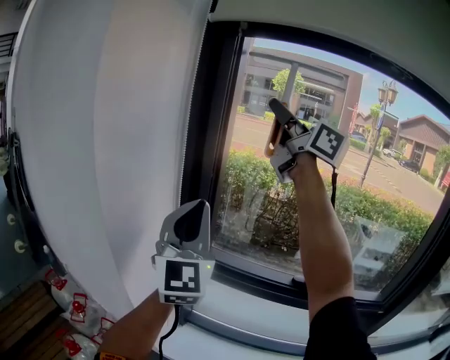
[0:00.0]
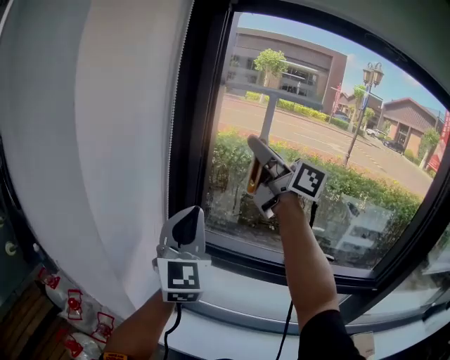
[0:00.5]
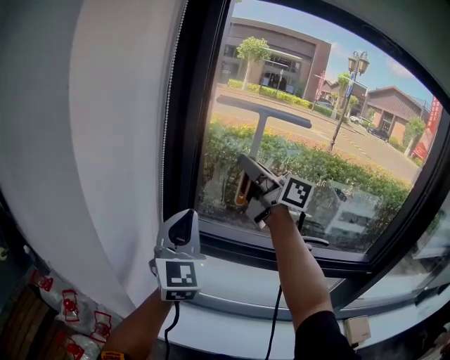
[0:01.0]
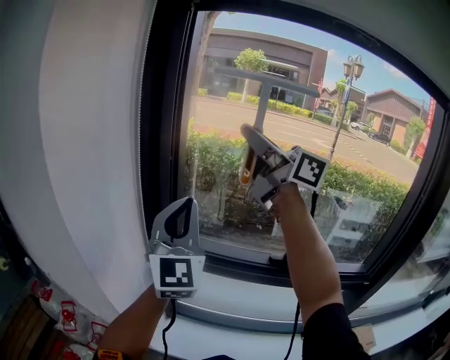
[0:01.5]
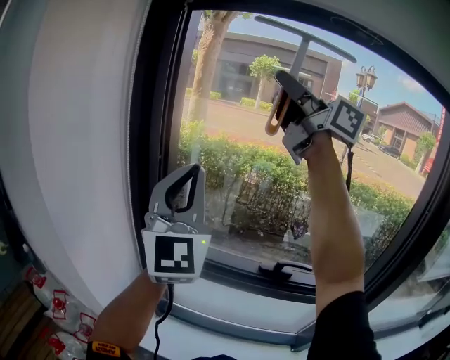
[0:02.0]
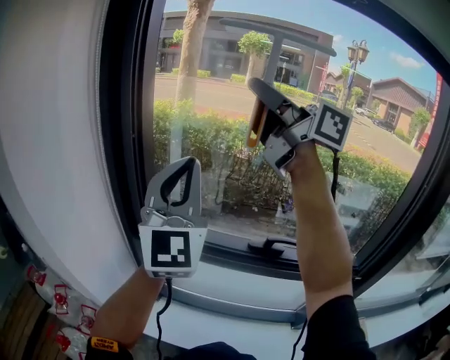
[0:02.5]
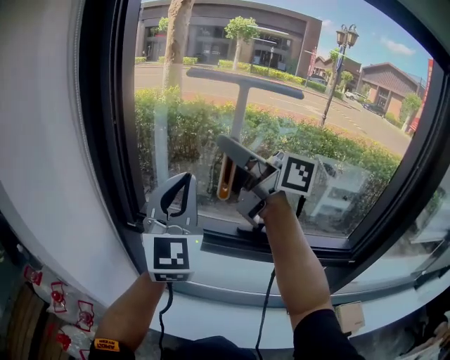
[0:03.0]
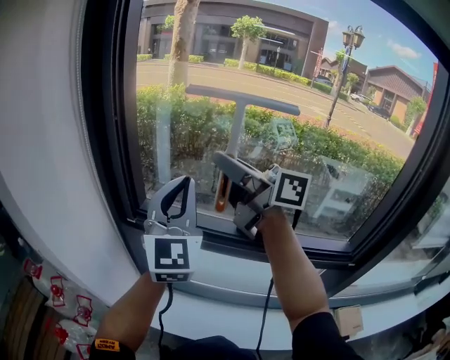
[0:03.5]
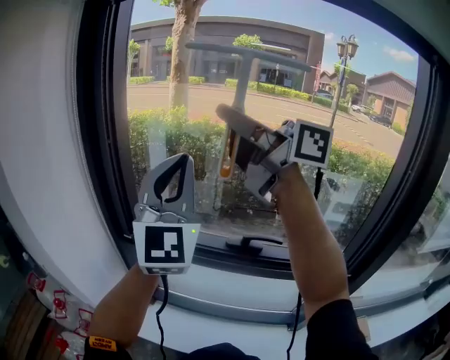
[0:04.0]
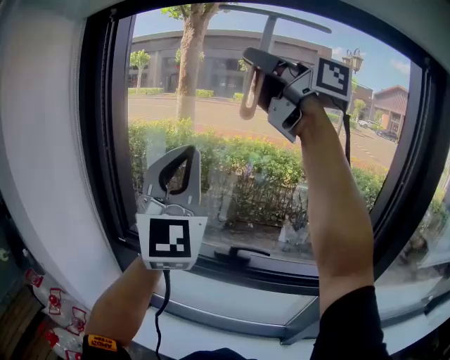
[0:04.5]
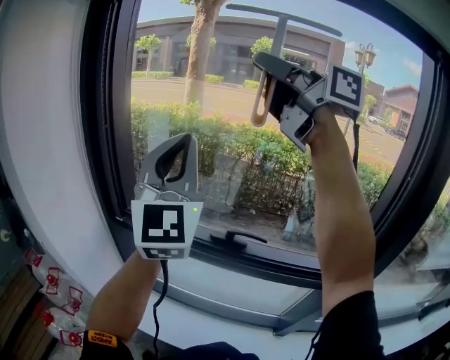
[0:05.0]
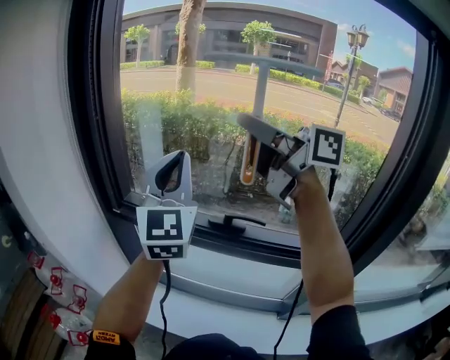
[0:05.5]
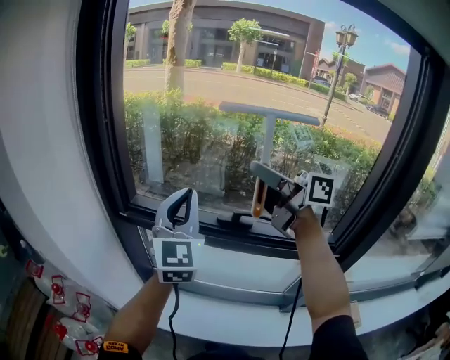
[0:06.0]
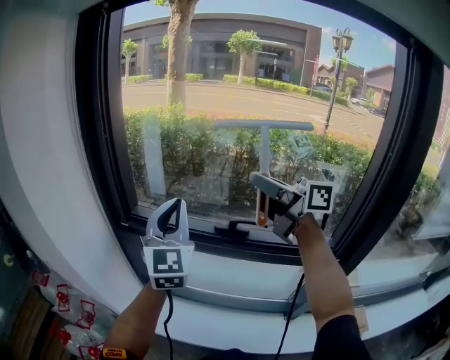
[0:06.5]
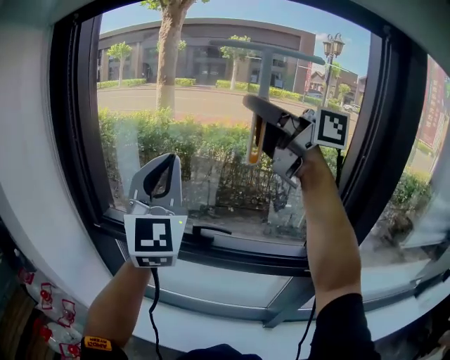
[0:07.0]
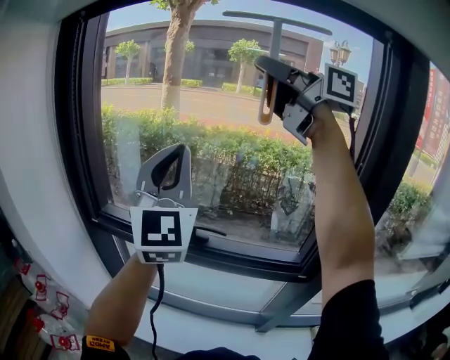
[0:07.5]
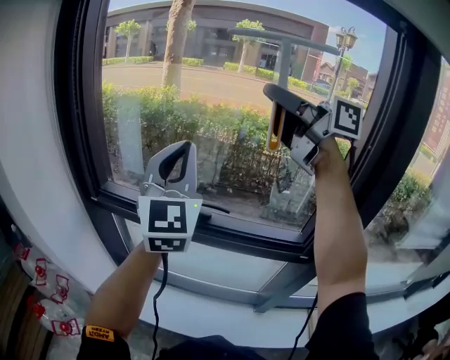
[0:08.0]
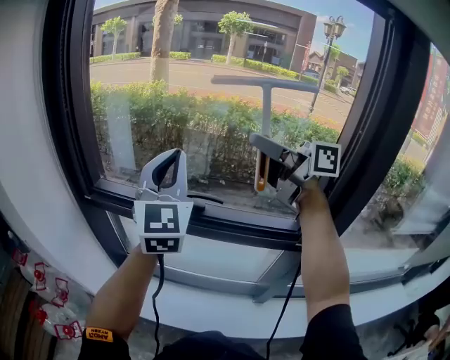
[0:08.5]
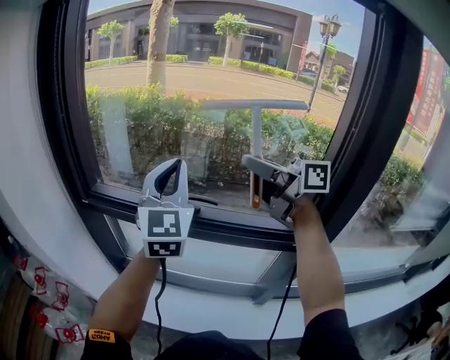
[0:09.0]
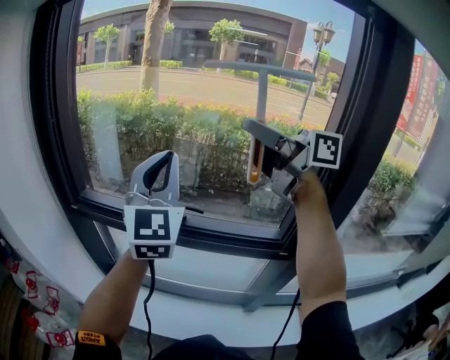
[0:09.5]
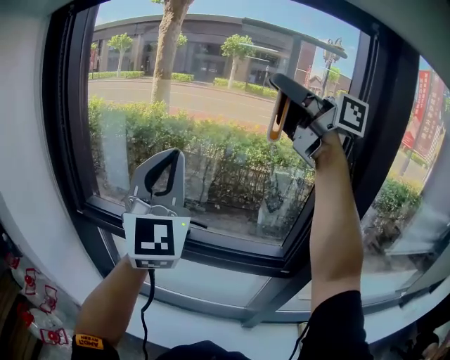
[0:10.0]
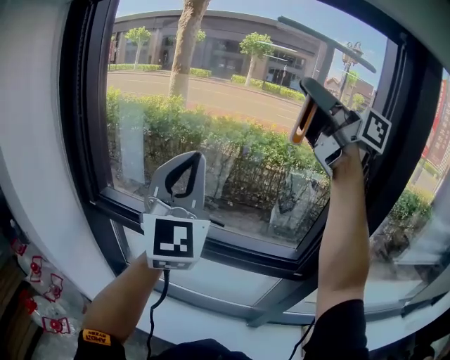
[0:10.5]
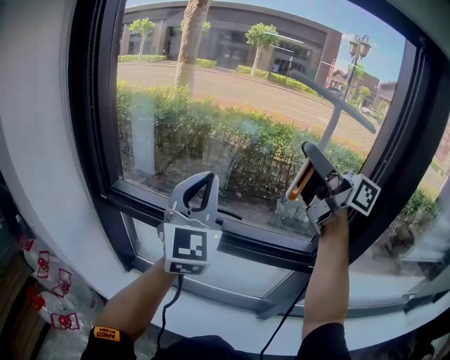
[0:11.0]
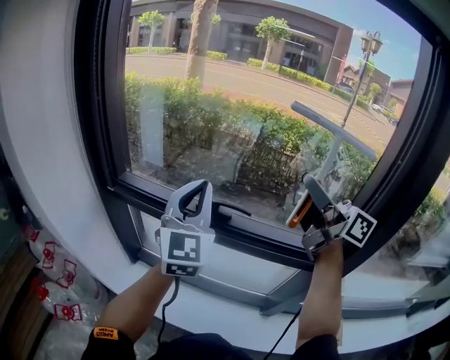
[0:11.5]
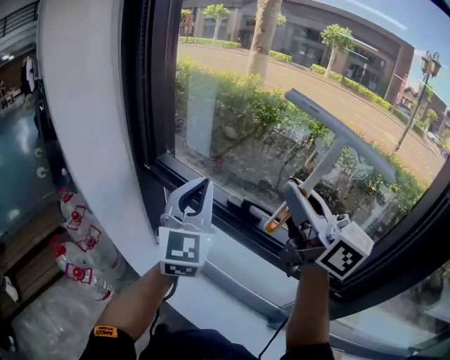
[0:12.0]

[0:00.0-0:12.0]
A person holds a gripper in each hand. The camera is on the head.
0:00.0 to 0:02.0: The left gripper shifts approximately 10 cm to the right, and travels downward and back again, about 10 cm each way; the right gripper travels to the right and backward by about 10 cm, and moves approximately 20 cm downward and comes back.
0:02.0 to 0:04.0: The left gripper is displaced to the right and backward by about 10 cm, and goes downward and returns, about 15 cm each way, while the right gripper goes some 15 cm downward and backward.
0:04.0 to 0:06.0: The right gripper goes approximately 15 cm downward and to the right; the left gripper goes roughly 15 cm downward.
0:06.0 to 0:08.0: The right gripper is displaced upward and to the right by about 20 cm, while the left gripper is displaced upward, to the right and backward by some 15 cm.
0:08.0 to 0:10.0: The left gripper changes place by roughly 5 cm, while the right gripper moves to the right, about 5 cm, and goes downward and returns, roughly 15 cm each way.
0:10.0 to 0:12.0: Both grippers move downward and to the left, roughly 25 cm. The left gripper rotates roughly 30 degrees.

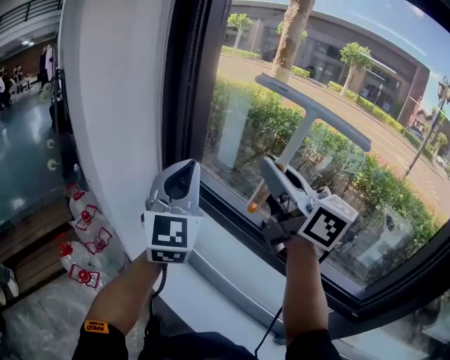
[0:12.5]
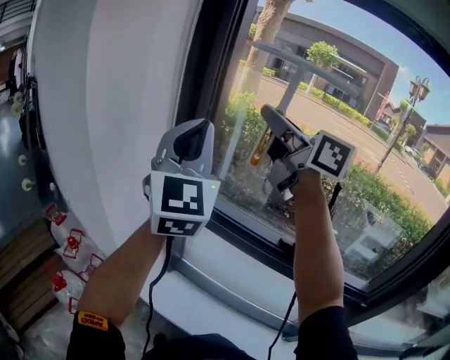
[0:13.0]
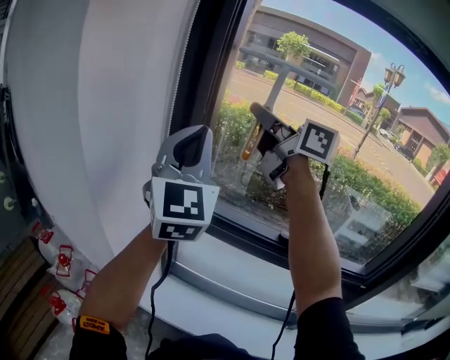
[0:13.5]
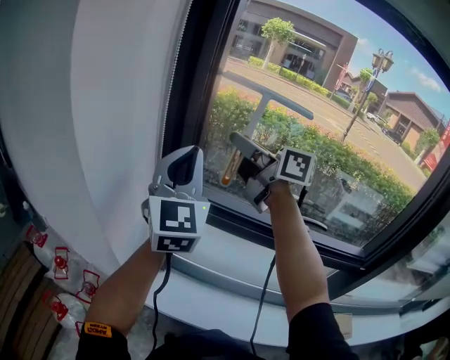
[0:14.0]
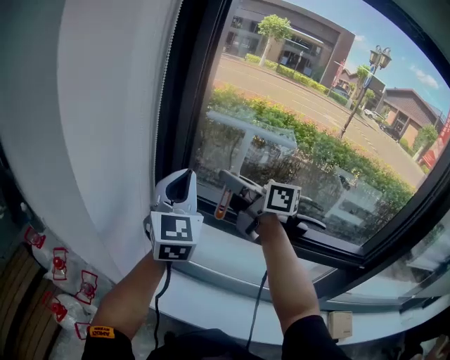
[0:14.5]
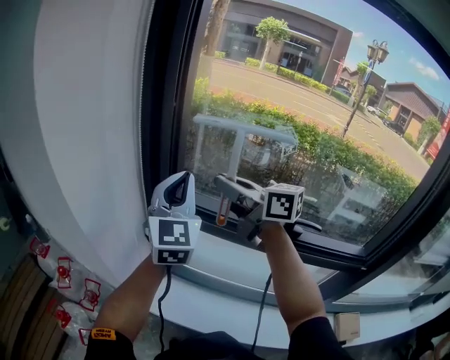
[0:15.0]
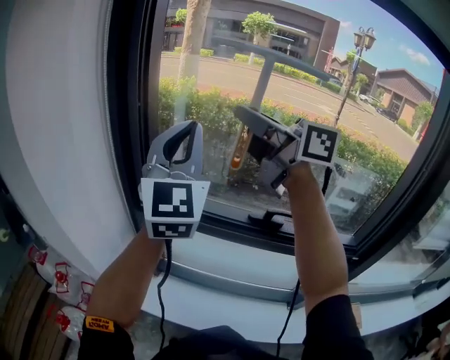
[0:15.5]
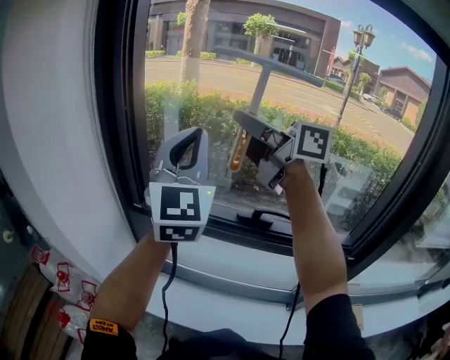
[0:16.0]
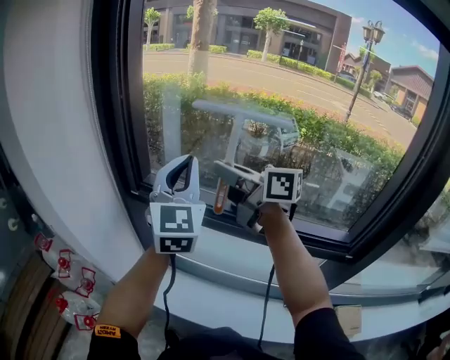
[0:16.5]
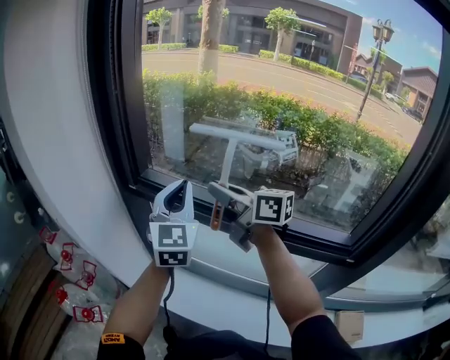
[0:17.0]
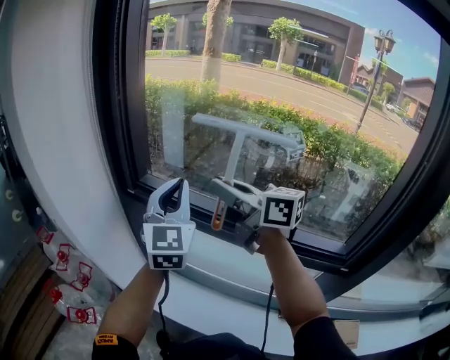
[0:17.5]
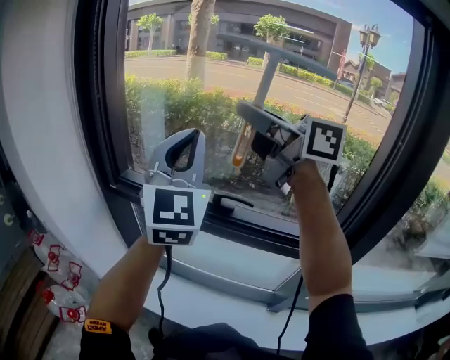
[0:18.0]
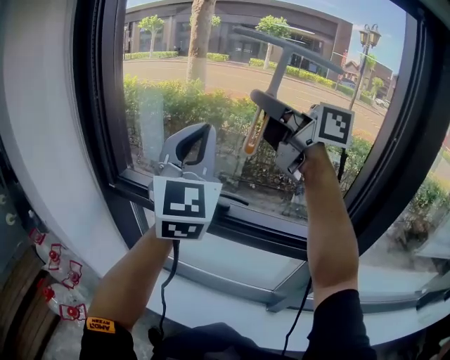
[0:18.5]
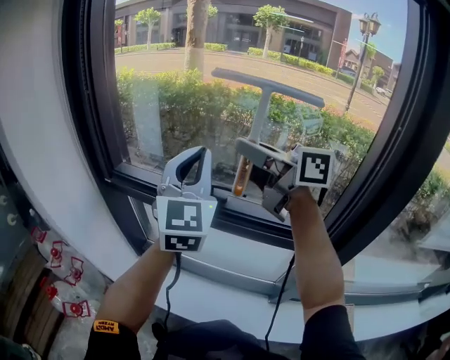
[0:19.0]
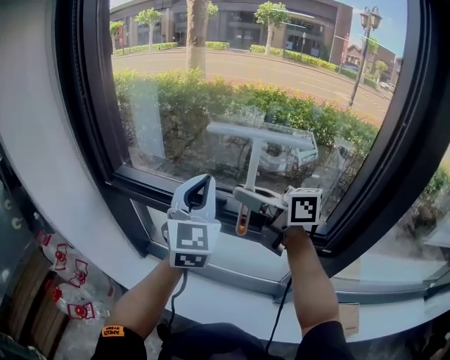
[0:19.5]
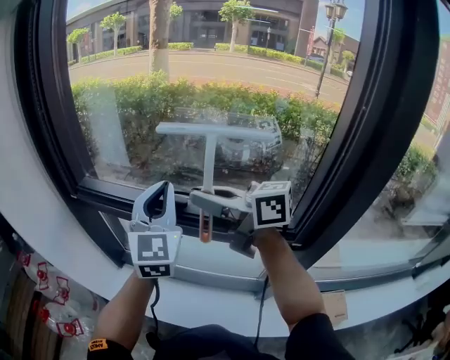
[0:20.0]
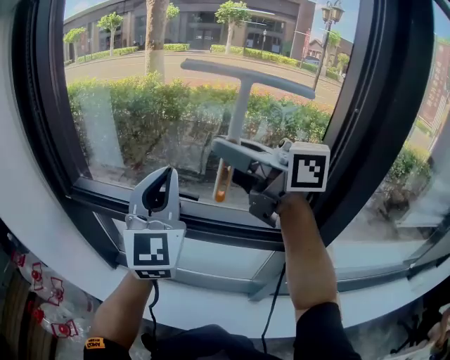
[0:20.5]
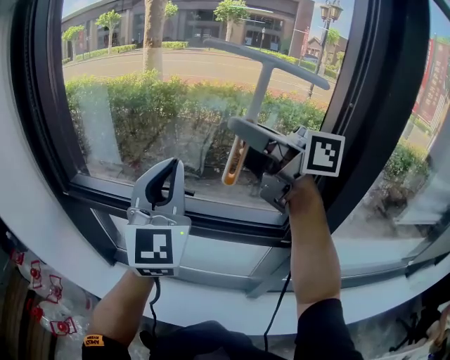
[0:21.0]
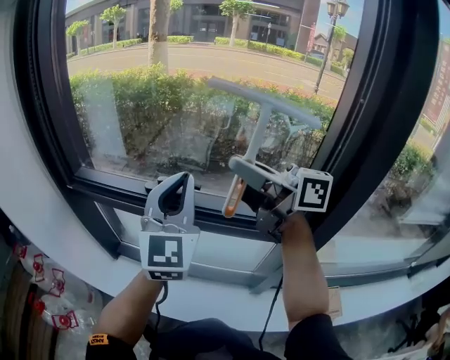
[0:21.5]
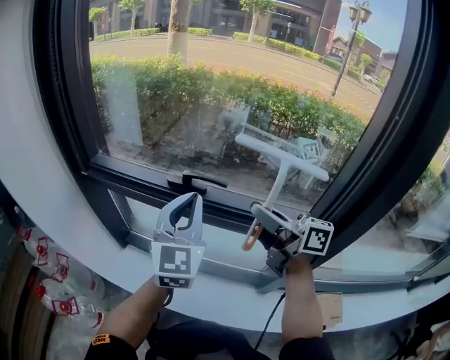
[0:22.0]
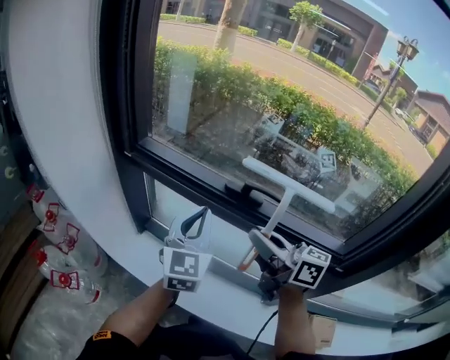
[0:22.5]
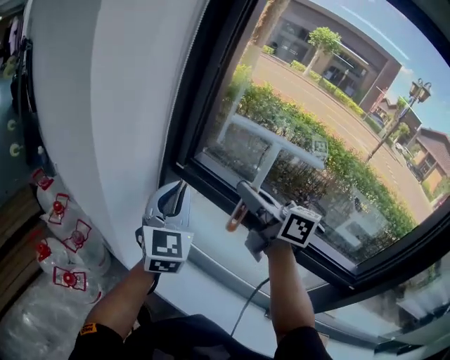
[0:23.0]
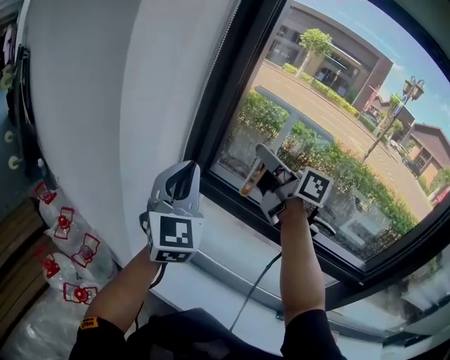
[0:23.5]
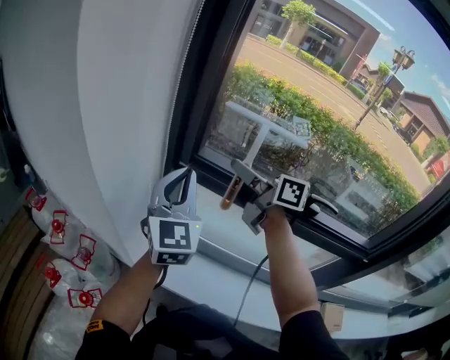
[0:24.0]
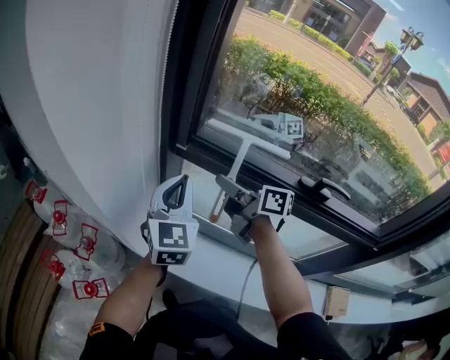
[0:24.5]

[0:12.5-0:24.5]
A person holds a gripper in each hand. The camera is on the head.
0:12.5 to 0:14.5: The left gripper is displaced forward by roughly 15 cm, travels upward and back again, about 10 cm each way, and turns by roughly 20 degrees. The right gripper heads forward, downward and to the left, covering roughly 20 cm, and swivels about 20 degrees.
0:14.5 to 0:16.5: The right gripper goes roughly 15 cm backward and to the right, and reaches about 20 cm upward, then returns. Meanwhile the left gripper shifts about 20 cm to the right and backward, and travels upward and back again, about 15 cm each way.
0:16.5 to 0:18.5: The left gripper is displaced backward, to the right and upward by some 20 cm. The right gripper moves upward, to the right and backward, roughly 25 cm.
0:18.5 to 0:20.5: The right gripper travels downward and backward by some 15 cm. Meanwhile the left gripper is displaced downward and to the right by about 15 cm.
0:20.5 to 0:22.5: Both grippers travel together downward and to the left, approximately 20 cm. The left gripper swivels approximately 20 degrees.
0:22.5 to 0:24.5: The right gripper shifts some 35 cm forward and to the left. Meanwhile the left gripper travels to the left and forward by about 25 cm.

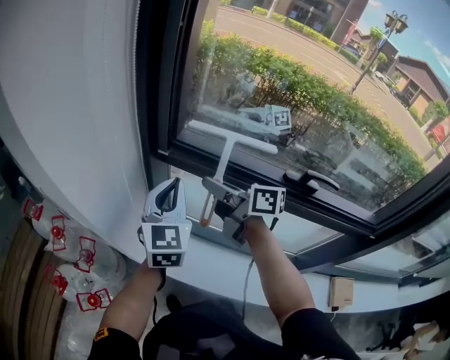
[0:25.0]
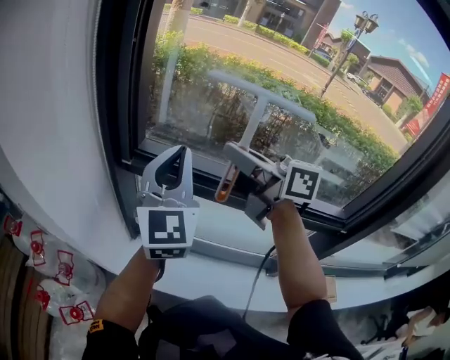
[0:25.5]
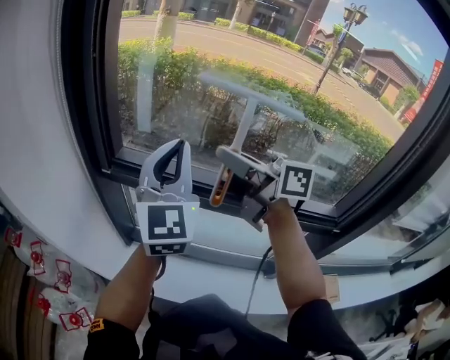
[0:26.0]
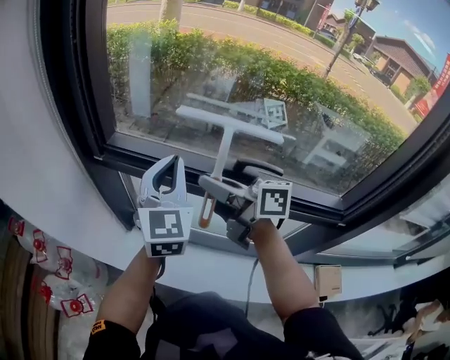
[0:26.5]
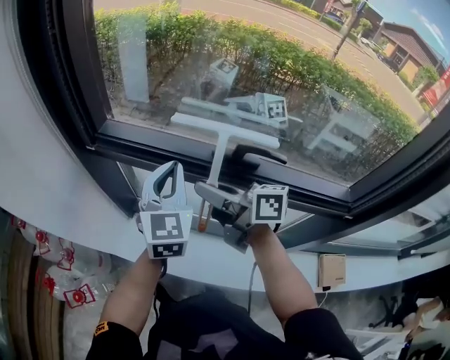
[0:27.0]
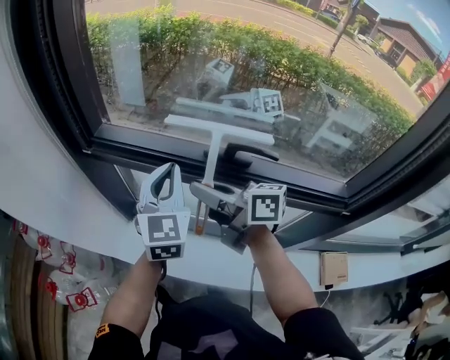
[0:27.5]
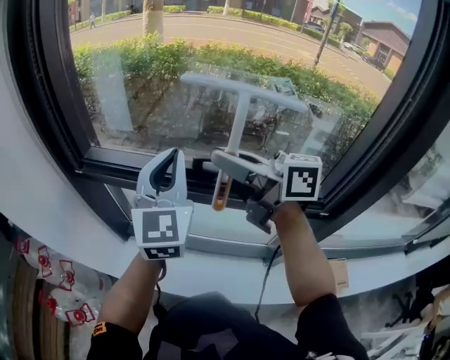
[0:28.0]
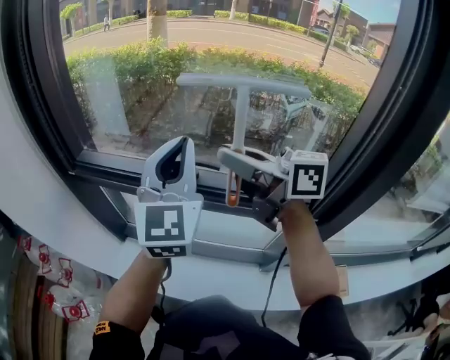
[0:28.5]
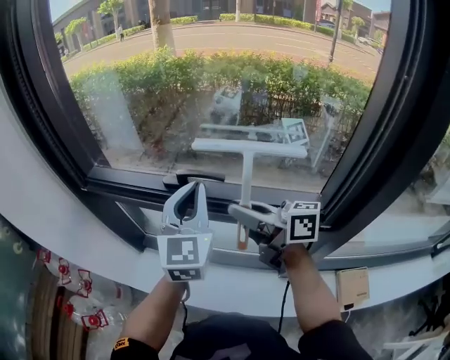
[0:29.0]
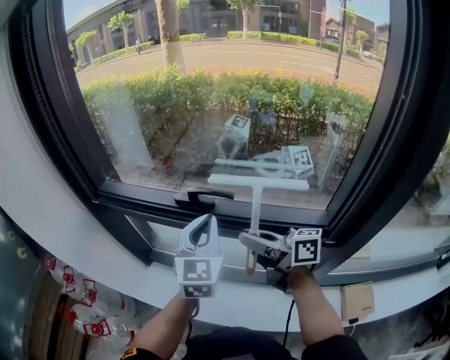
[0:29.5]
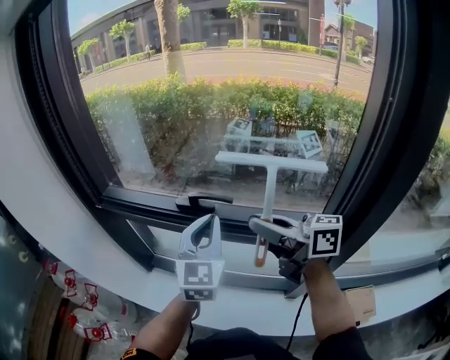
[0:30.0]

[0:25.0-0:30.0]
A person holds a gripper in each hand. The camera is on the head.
0:25.0 to 0:27.5: The right gripper heads to the right and backward, covering some 20 cm, and moves roughly 20 cm upward and comes back; the left gripper travels to the right by roughly 20 cm.
0:27.5 to 0:30.0: The right gripper shifts roughly 25 cm to the right, backward and upward, while the left gripper is displaced to the right and backward by about 20 cm, and travels upward and back again, roughly 15 cm each way.
